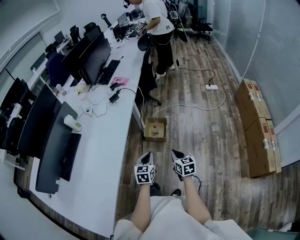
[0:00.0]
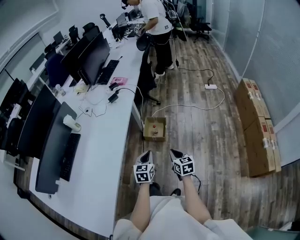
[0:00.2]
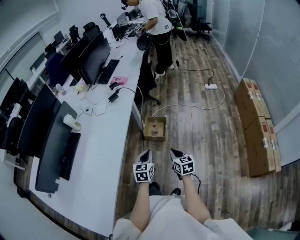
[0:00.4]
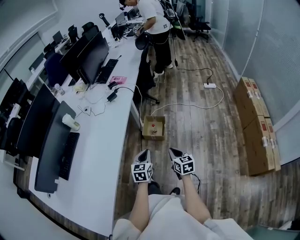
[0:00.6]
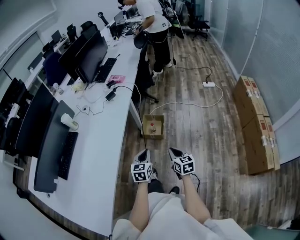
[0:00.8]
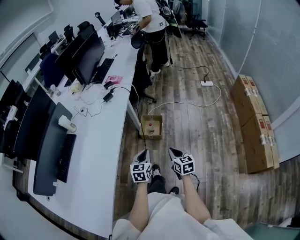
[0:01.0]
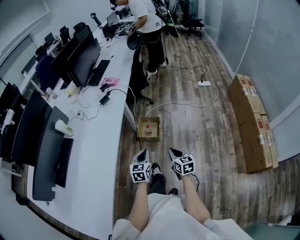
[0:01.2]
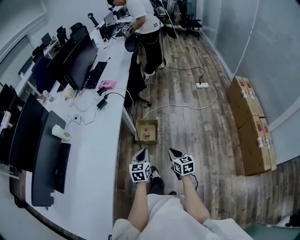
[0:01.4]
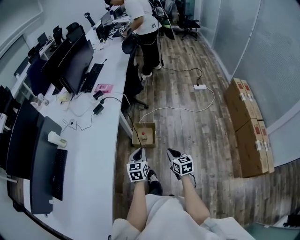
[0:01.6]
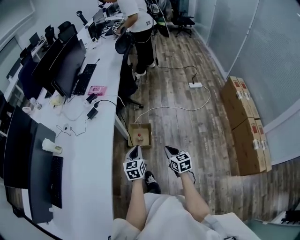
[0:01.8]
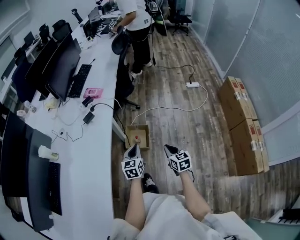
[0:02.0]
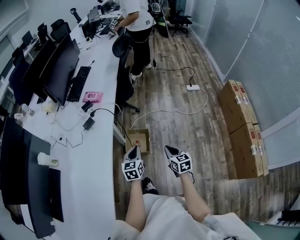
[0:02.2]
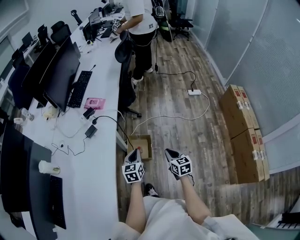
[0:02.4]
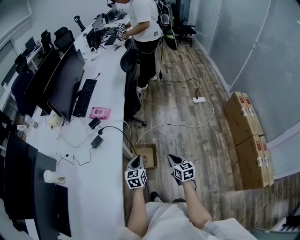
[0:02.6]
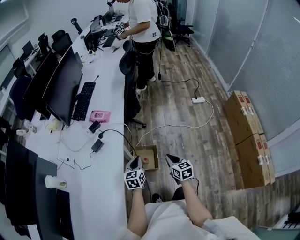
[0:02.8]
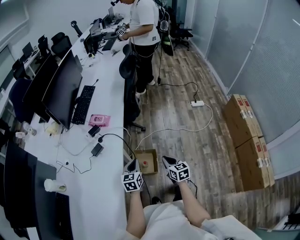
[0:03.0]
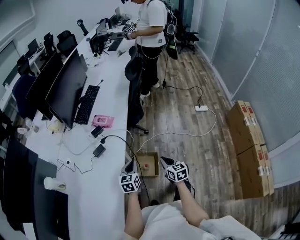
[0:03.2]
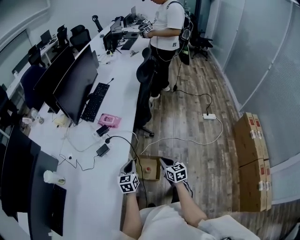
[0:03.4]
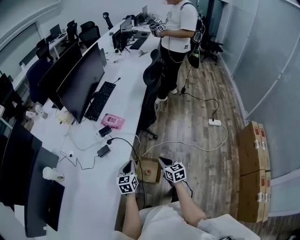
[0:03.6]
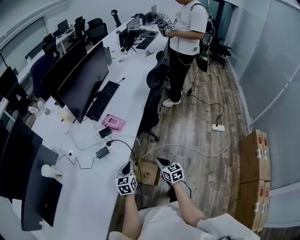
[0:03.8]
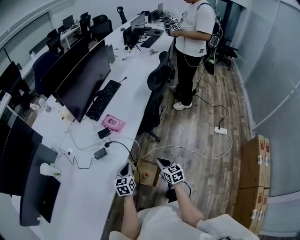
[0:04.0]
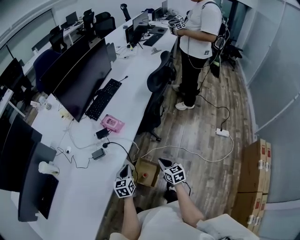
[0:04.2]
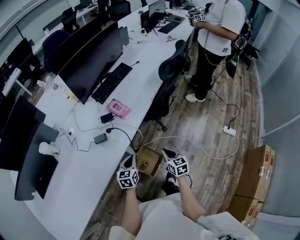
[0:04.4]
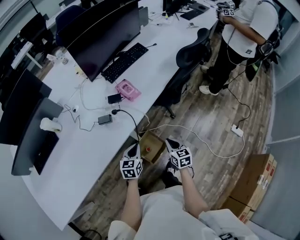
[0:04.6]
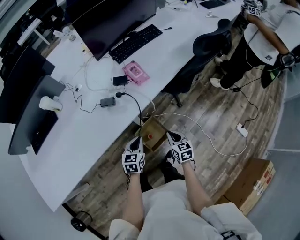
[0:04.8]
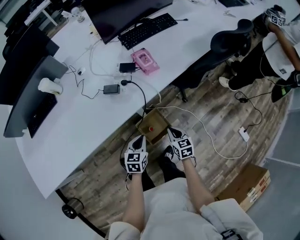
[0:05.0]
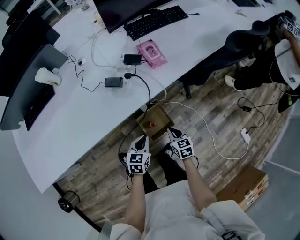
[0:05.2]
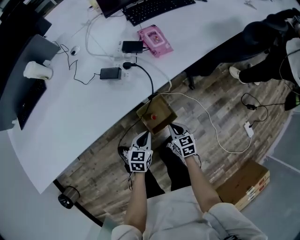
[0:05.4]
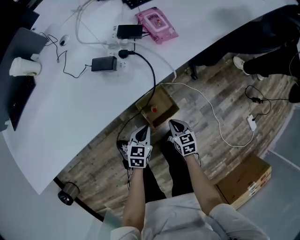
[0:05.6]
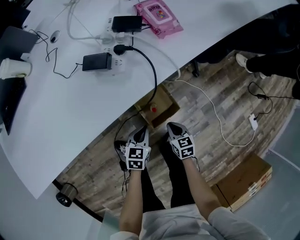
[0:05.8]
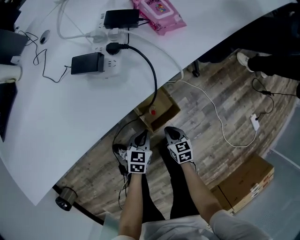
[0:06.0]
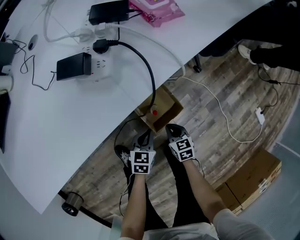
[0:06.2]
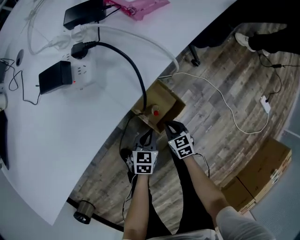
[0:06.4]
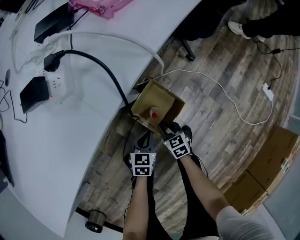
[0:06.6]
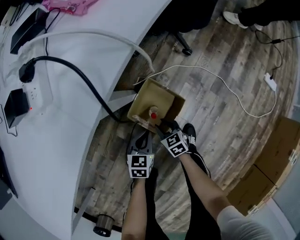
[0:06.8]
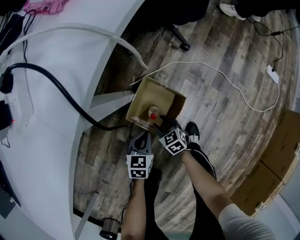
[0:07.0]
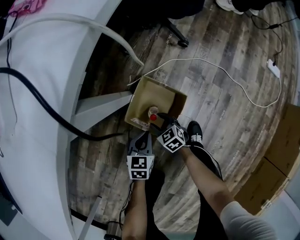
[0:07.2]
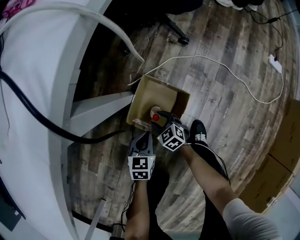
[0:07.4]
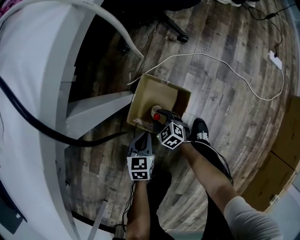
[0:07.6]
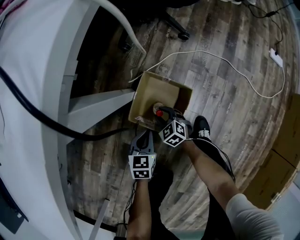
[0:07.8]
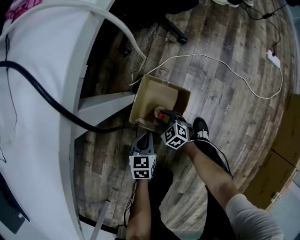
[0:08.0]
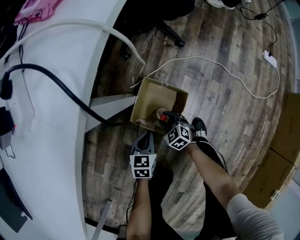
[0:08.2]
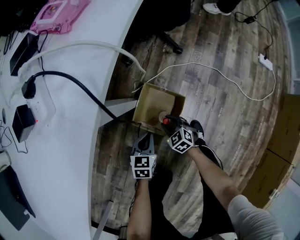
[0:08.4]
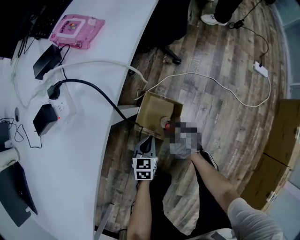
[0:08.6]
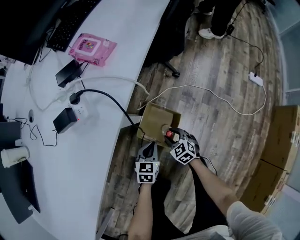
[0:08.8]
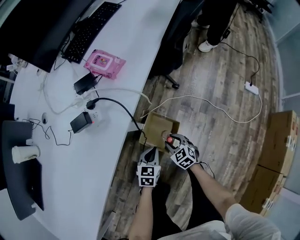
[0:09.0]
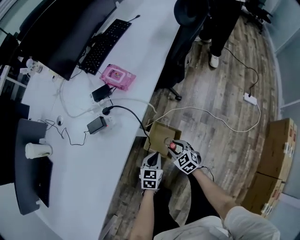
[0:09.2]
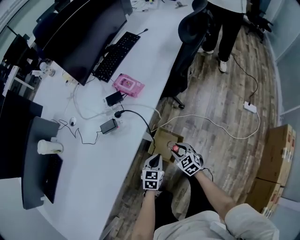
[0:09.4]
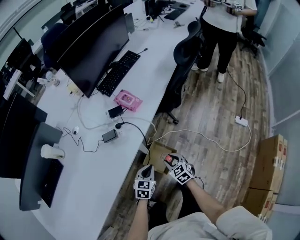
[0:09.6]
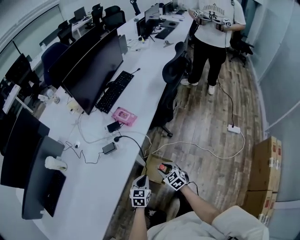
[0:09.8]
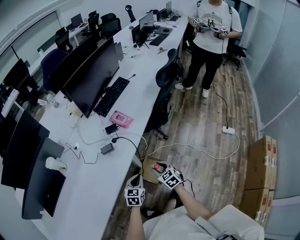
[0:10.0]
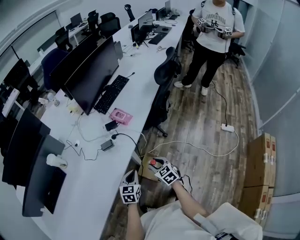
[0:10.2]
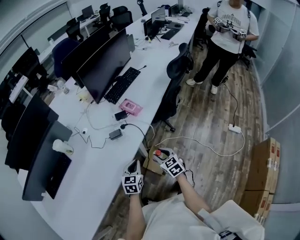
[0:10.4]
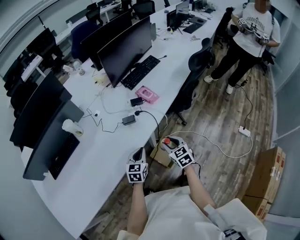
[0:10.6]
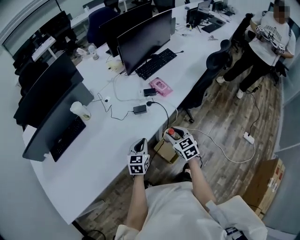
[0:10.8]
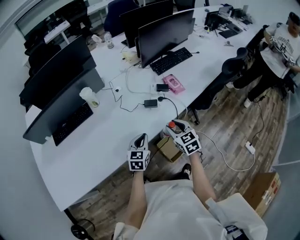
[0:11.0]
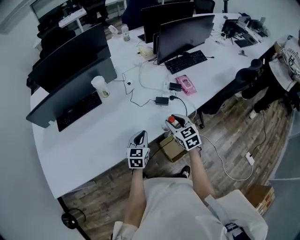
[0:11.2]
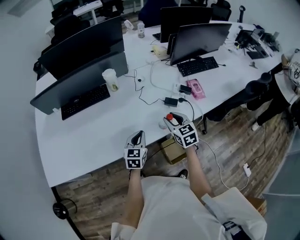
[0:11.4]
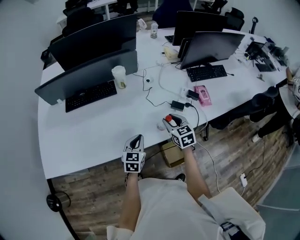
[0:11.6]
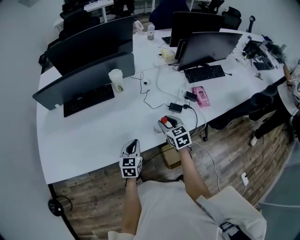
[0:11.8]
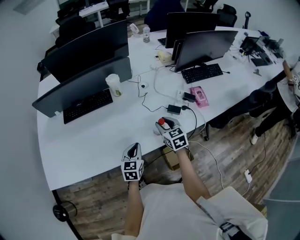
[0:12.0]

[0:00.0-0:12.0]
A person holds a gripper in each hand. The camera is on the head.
0.0 to 1.6 s: Both grippers move forward, roughly 15 cm.
1.6 to 3.0 s: Both grippers move forward, approximately 30 cm.
3.0 to 4.4 s: The right gripper moves about 20 cm, and rotates approximately 30 degrees, while the left gripper moves some 10 cm, and swivels some 30 degrees.
4.4 to 6.0 s: Both grippers travel together downward, some 35 cm. The right gripper turns by approximately 30 degrees.
6.0 to 7.6 s: Both grippers move downward, approximately 30 cm. The right gripper opens. Meanwhile the left gripper changes its angle by approximately 20 degrees.
7.6 to 9.0 s: Both grippers move upward, some 35 cm.
9.0 to 10.4 s: Both grippers move upward, approximately 35 cm. The left gripper rotates some 20 degrees.
10.4 to 12.0 s: The right gripper changes place by roughly 30 cm, and turns by roughly 30 degrees; the left gripper moves roughly 25 cm, and turns by roughly 40 degrees.

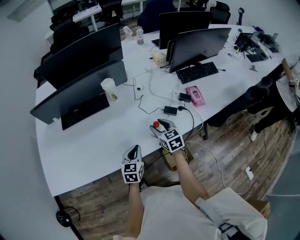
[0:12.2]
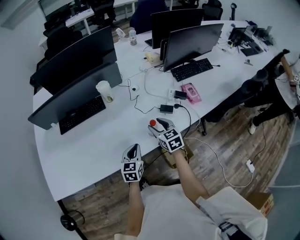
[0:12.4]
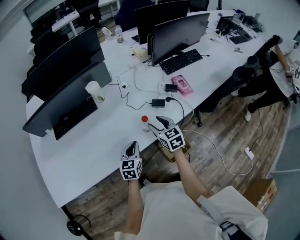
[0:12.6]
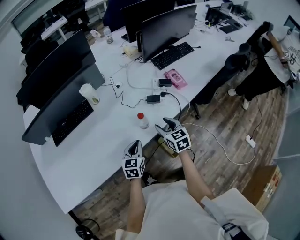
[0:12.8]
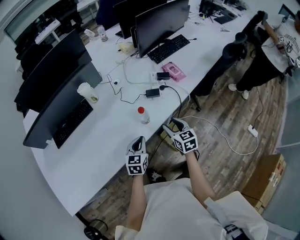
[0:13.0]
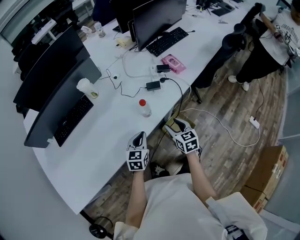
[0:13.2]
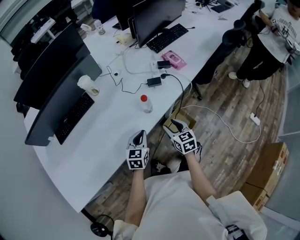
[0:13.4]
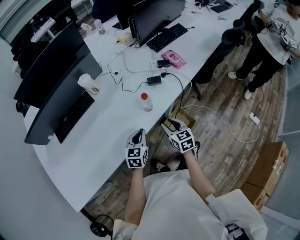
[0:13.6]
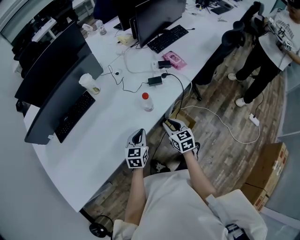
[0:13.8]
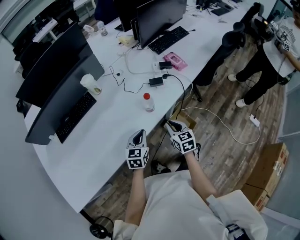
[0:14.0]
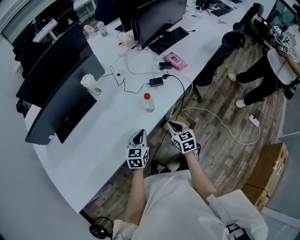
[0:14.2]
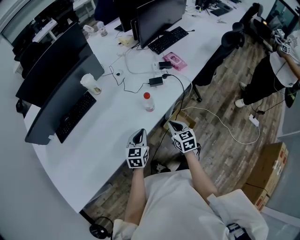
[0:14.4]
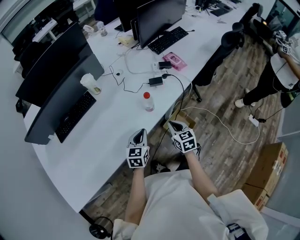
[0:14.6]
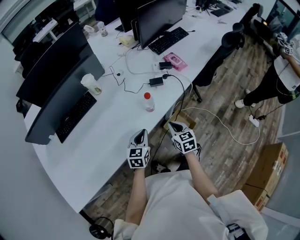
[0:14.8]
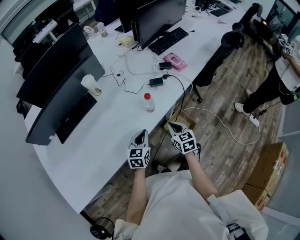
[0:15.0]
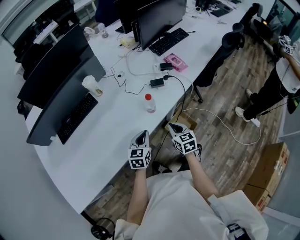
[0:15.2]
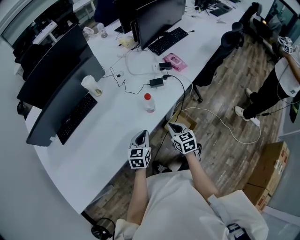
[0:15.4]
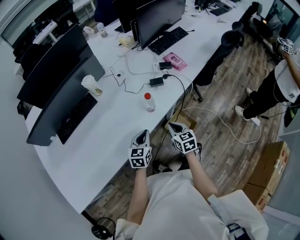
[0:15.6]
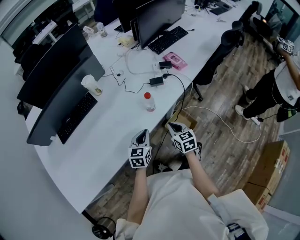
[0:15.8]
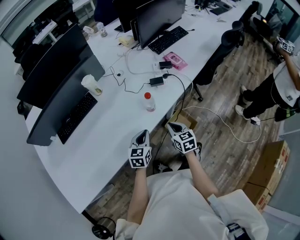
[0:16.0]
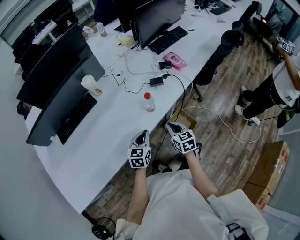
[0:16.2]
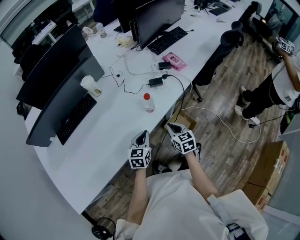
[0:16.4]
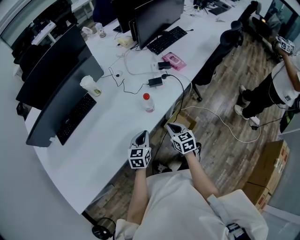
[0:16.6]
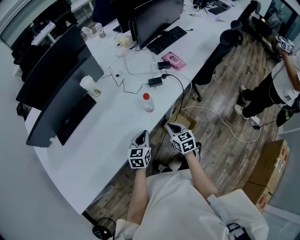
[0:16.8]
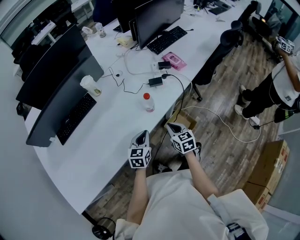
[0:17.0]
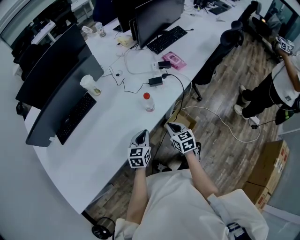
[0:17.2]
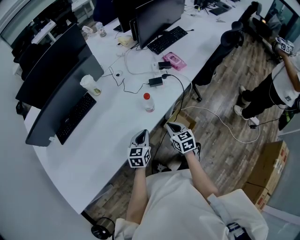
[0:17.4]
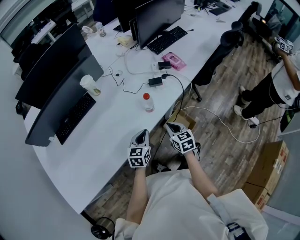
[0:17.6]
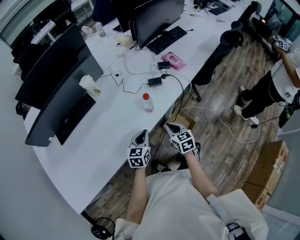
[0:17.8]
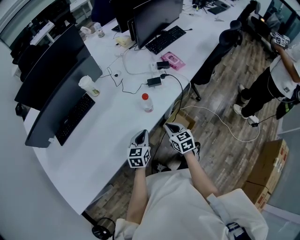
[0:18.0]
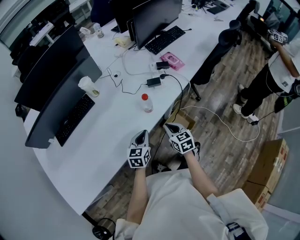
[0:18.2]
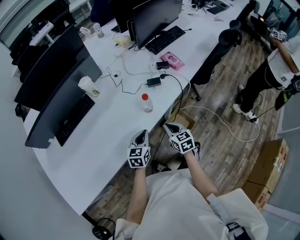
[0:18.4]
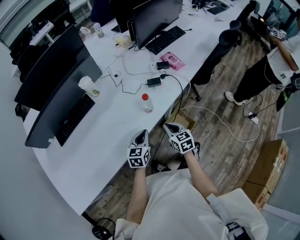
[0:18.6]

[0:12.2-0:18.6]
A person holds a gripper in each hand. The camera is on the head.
12.2 to 13.8 s: The left gripper shifts by some 5 cm, and changes its angle by some 20 degrees, while the right gripper travels backward, to the right and downward by roughly 20 cm, swivels about 30 degrees, and closes its fingers.
13.8 to 15.4 s: The right gripper closes its fingers.
15.4 to 18.6 s: Neither gripper changes place.

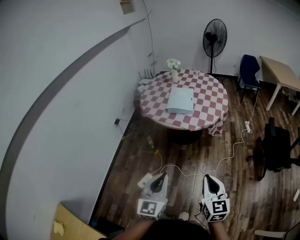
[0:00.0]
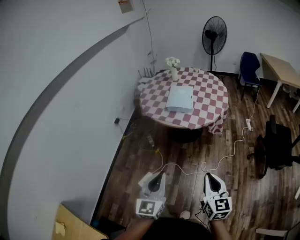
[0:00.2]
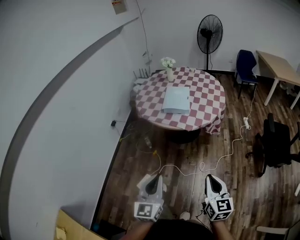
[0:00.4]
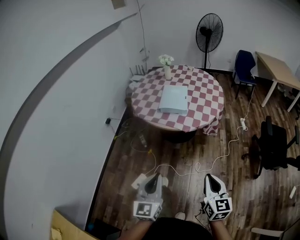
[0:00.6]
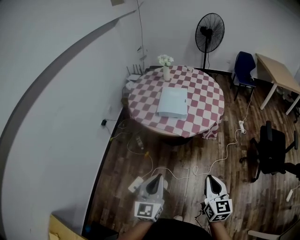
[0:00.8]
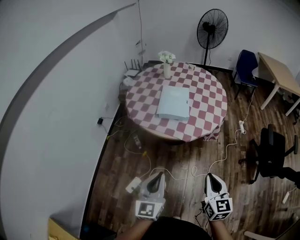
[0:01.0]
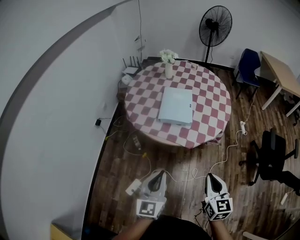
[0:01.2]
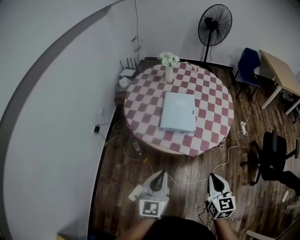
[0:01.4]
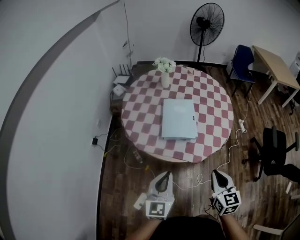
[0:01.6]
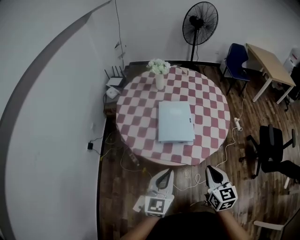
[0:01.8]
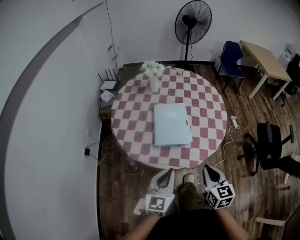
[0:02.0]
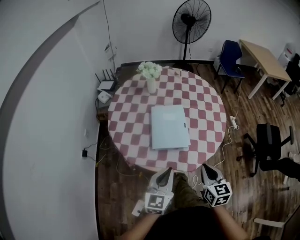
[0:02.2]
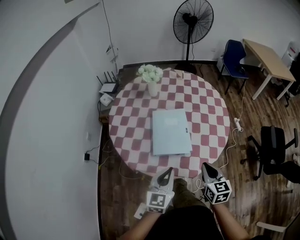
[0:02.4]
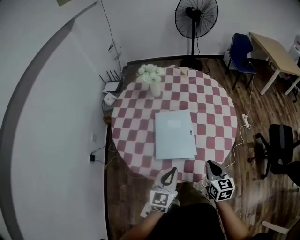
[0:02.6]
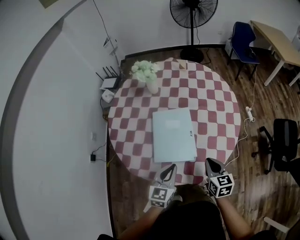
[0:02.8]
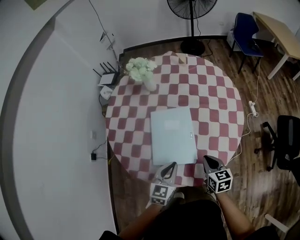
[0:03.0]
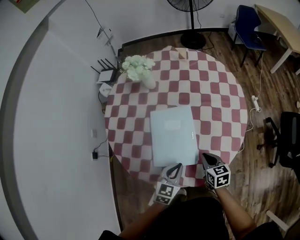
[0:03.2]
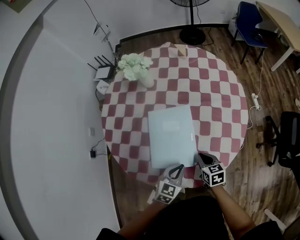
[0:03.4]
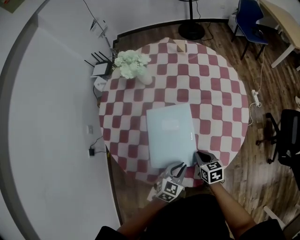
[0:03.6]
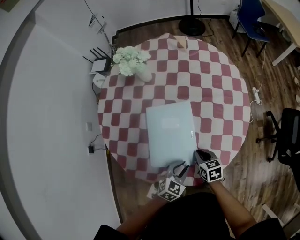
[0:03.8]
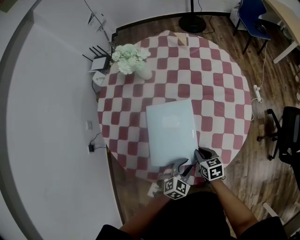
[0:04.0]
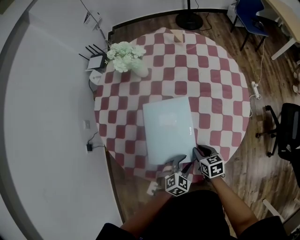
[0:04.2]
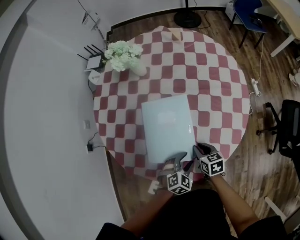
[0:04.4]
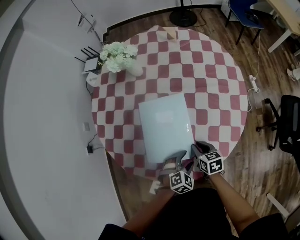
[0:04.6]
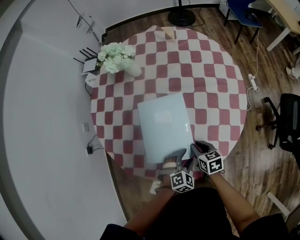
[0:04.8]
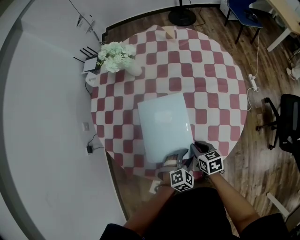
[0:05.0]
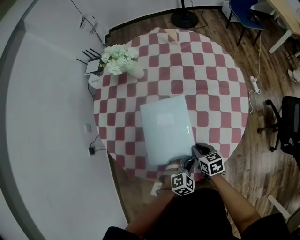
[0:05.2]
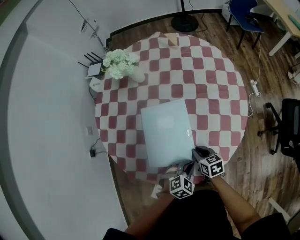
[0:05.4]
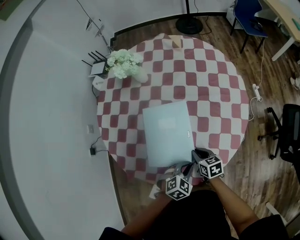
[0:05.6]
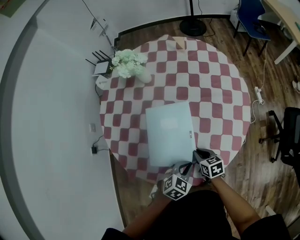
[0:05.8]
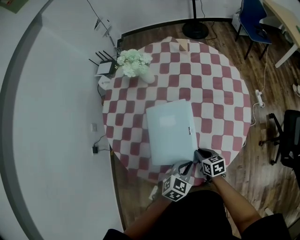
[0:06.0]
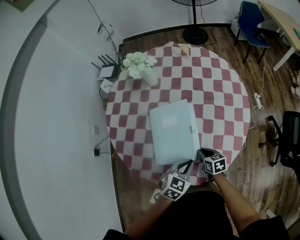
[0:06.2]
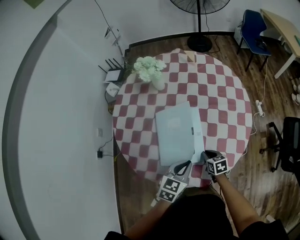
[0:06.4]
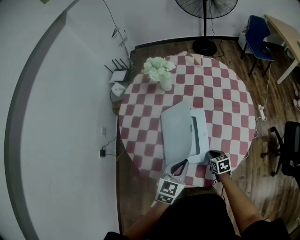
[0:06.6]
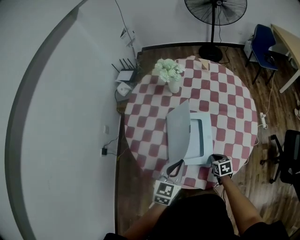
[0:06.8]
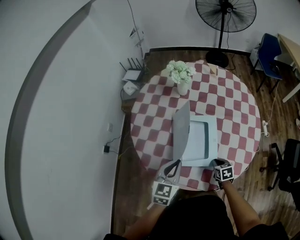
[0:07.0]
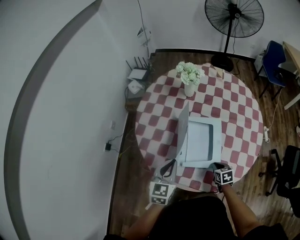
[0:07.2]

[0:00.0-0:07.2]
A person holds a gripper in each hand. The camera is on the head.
0.0 to 1.4 s: The grippers both shift forward by about 40 cm.
1.4 to 2.8 s: Both grippers travel together forward, roughly 35 cm. The left gripper rotates approximately 30 degrees.
2.8 to 4.4 s: The right gripper goes some 20 cm downward and forward, and turns by some 20 degrees; the left gripper is displaced downward and to the right by roughly 20 cm, tips its fingers downward by roughly 30 degrees, and opens.
4.4 to 5.8 s: The left gripper heads upward, covering some 5 cm, and closes.
5.8 to 7.2 s: The right gripper moves to the left, some 5 cm. Meanwhile the left gripper is displaced to the left and upward by approximately 30 cm, and changes its angle by roughly 50 degrees.
